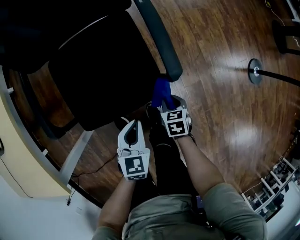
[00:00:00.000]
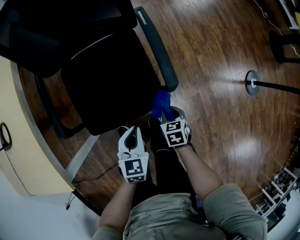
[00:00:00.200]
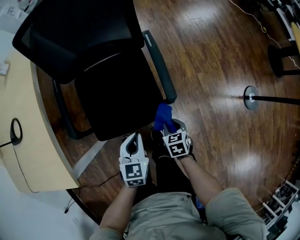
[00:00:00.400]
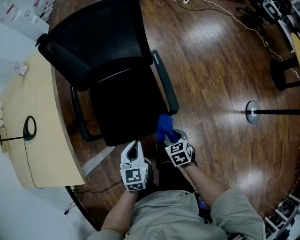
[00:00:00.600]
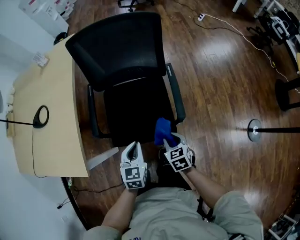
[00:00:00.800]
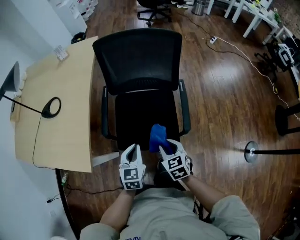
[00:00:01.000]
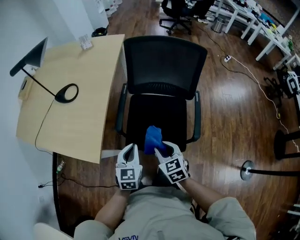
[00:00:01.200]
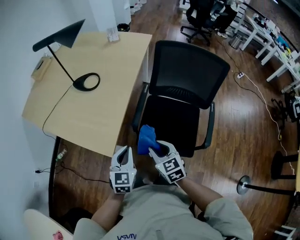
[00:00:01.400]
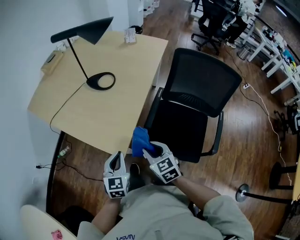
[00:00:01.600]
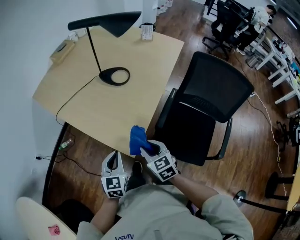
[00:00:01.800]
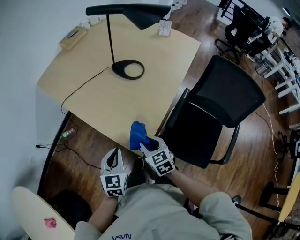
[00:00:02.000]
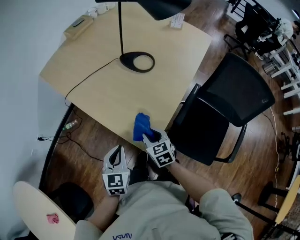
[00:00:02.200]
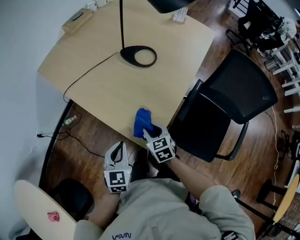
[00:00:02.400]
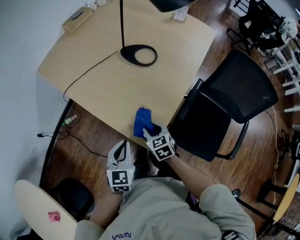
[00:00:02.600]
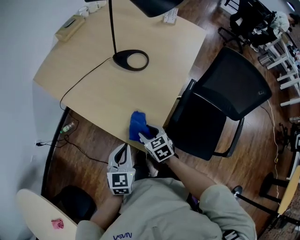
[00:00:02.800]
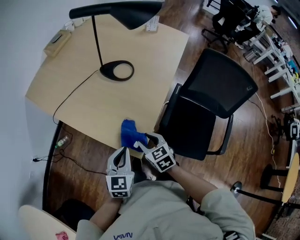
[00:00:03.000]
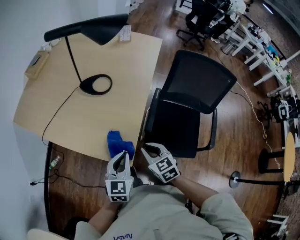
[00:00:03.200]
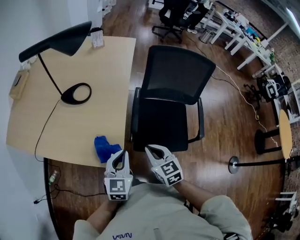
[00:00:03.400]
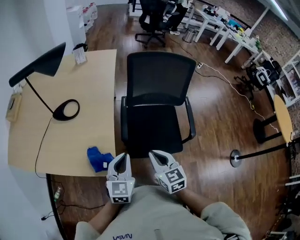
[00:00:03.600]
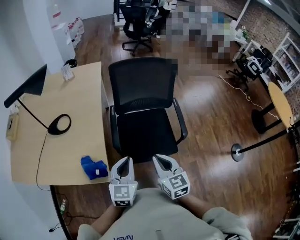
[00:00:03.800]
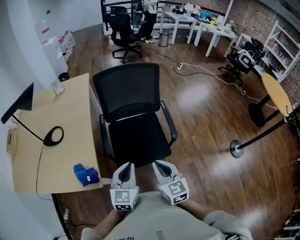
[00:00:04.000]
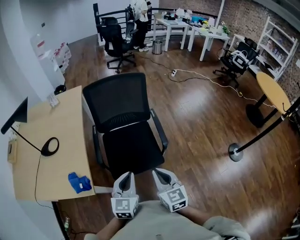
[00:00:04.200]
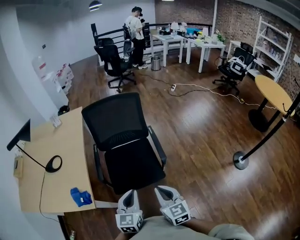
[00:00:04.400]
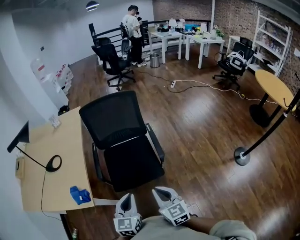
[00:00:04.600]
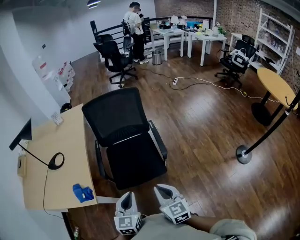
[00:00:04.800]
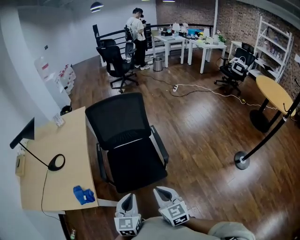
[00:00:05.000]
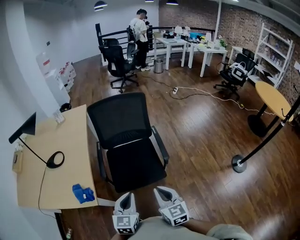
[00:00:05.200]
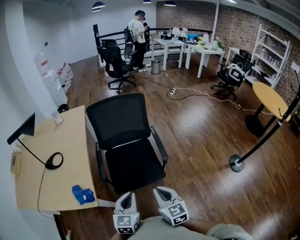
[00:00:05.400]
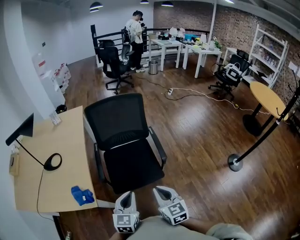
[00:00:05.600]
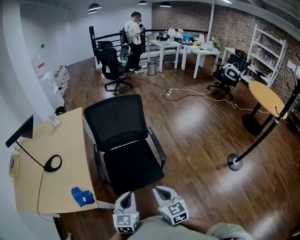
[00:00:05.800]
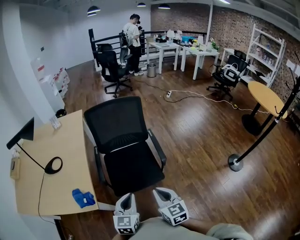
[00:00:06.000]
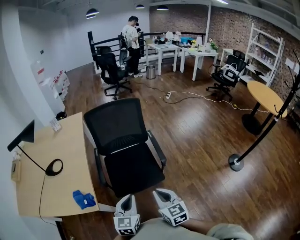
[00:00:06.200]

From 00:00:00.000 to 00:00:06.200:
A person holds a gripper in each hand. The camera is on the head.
From 00:00:00.000 to 00:00:01.600: The pair of grippers is taken approximately 50 cm. The right gripper tilts its fingers approximately 30 degrees upward; the left gripper turns by approximately 50 degrees.
From 00:00:01.600 to 00:00:03.200: The right gripper moves forward and to the left, about 10 cm. Meanwhile the left gripper heads forward, covering approximately 5 cm, and travels to the left and back again, about 15 cm each way.
From 00:00:03.200 to 00:00:04.600: The two grippers travel together, some 50 cm. The left gripper turns by about 30 degrees. Meanwhile the right gripper changes its angle by roughly 40 degrees.
From 00:00:04.600 to 00:00:06.200: Both grippers move to the left, about 5 cm.

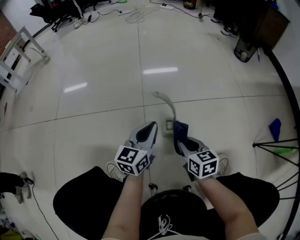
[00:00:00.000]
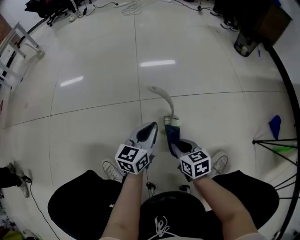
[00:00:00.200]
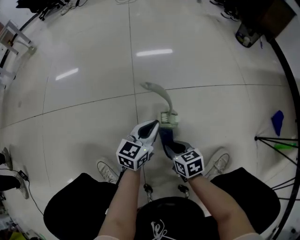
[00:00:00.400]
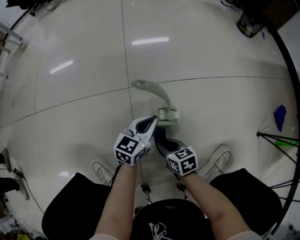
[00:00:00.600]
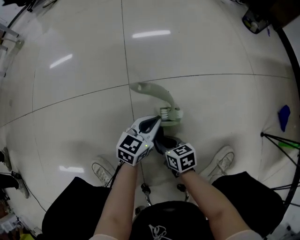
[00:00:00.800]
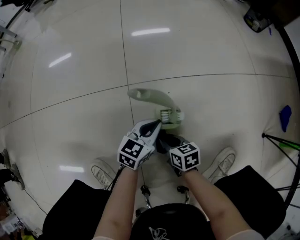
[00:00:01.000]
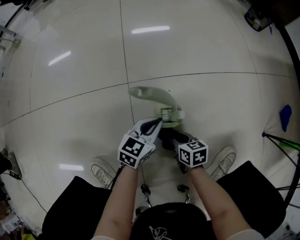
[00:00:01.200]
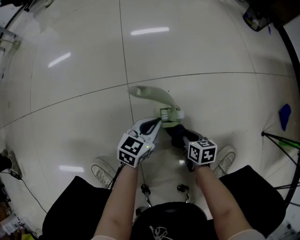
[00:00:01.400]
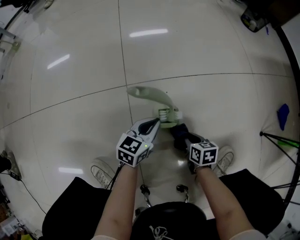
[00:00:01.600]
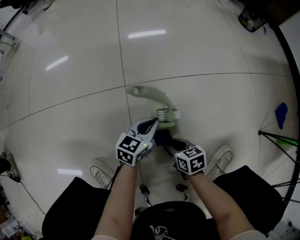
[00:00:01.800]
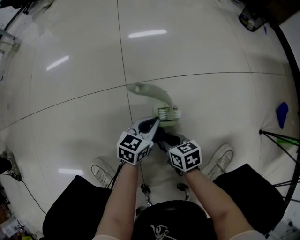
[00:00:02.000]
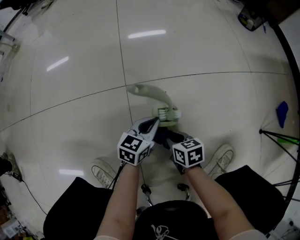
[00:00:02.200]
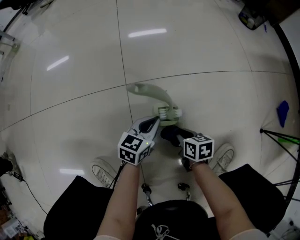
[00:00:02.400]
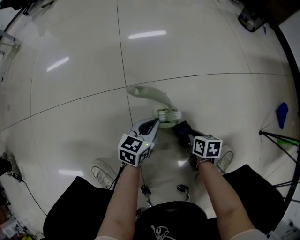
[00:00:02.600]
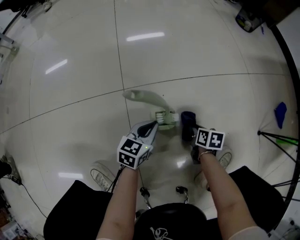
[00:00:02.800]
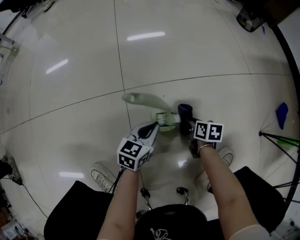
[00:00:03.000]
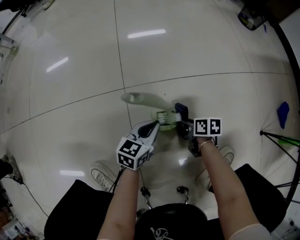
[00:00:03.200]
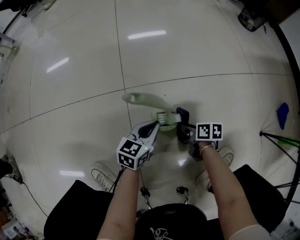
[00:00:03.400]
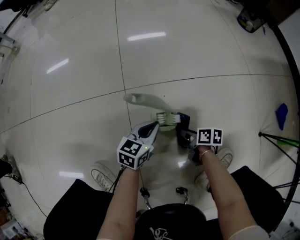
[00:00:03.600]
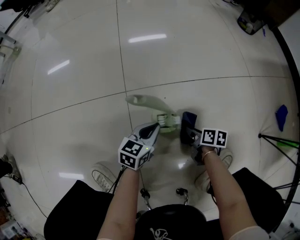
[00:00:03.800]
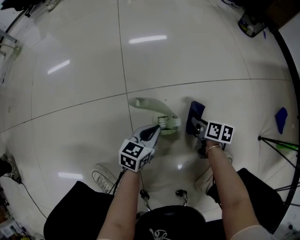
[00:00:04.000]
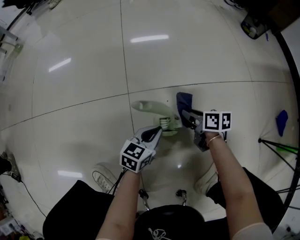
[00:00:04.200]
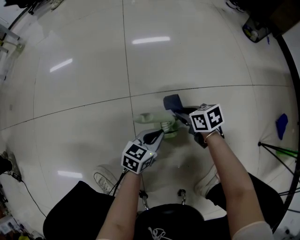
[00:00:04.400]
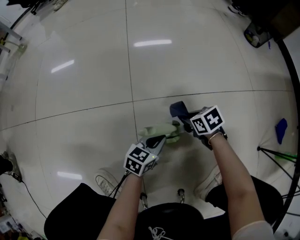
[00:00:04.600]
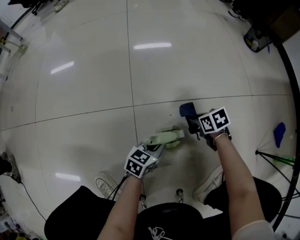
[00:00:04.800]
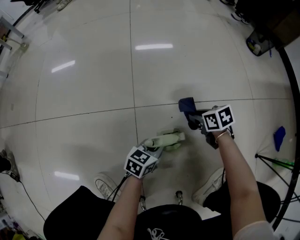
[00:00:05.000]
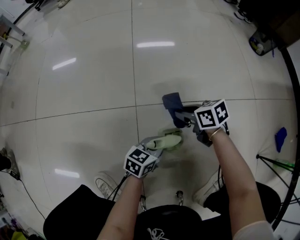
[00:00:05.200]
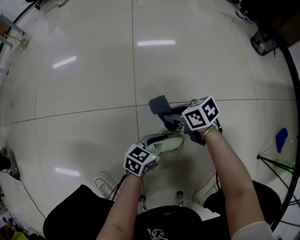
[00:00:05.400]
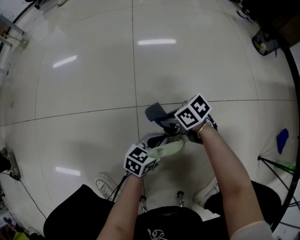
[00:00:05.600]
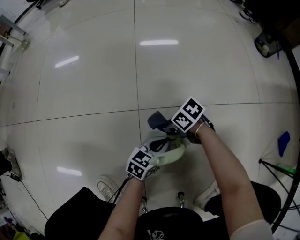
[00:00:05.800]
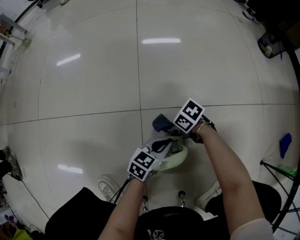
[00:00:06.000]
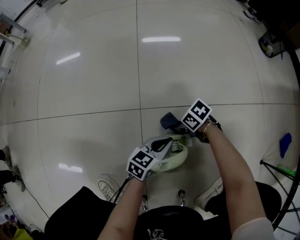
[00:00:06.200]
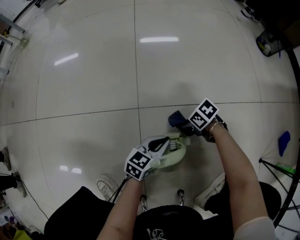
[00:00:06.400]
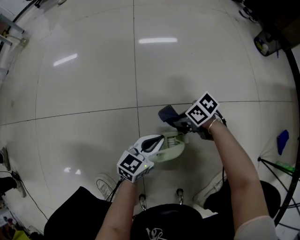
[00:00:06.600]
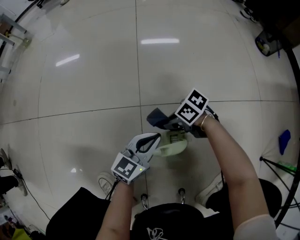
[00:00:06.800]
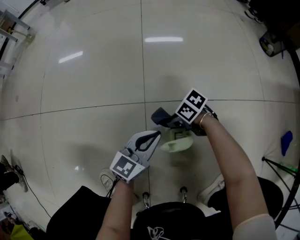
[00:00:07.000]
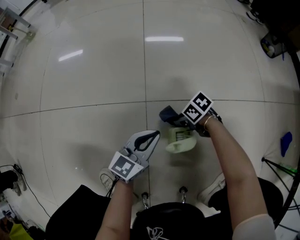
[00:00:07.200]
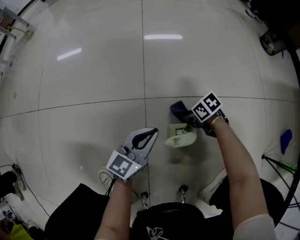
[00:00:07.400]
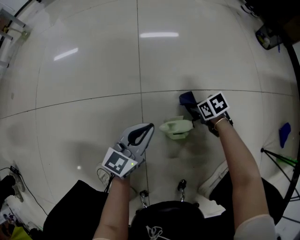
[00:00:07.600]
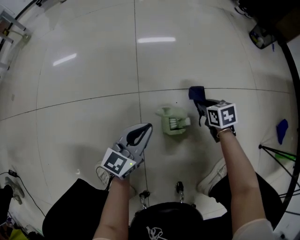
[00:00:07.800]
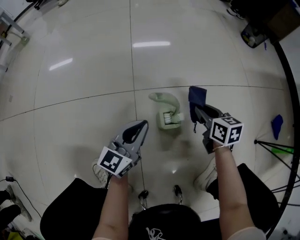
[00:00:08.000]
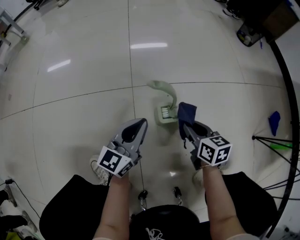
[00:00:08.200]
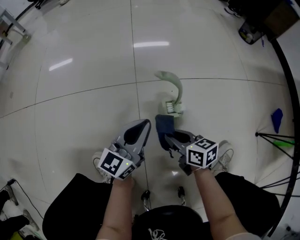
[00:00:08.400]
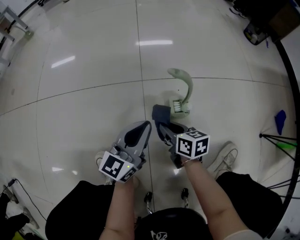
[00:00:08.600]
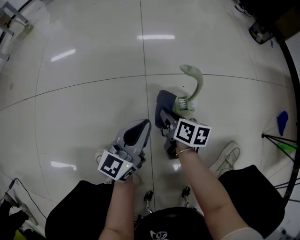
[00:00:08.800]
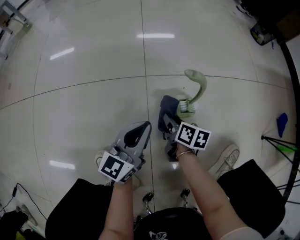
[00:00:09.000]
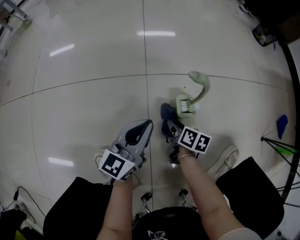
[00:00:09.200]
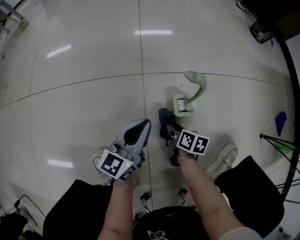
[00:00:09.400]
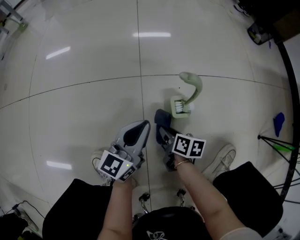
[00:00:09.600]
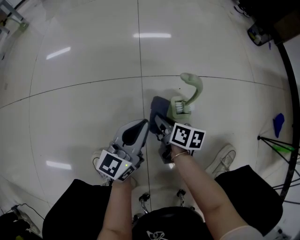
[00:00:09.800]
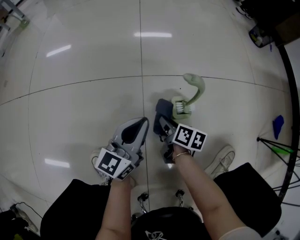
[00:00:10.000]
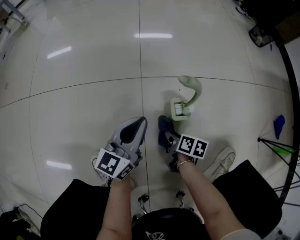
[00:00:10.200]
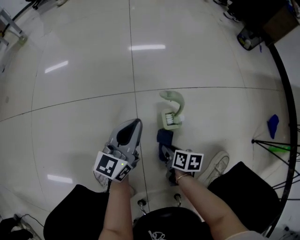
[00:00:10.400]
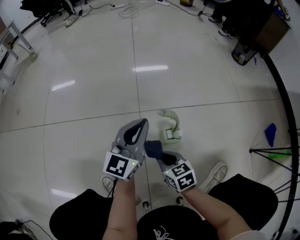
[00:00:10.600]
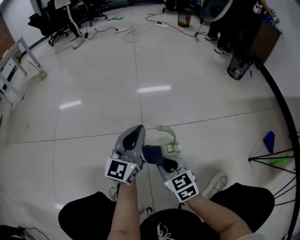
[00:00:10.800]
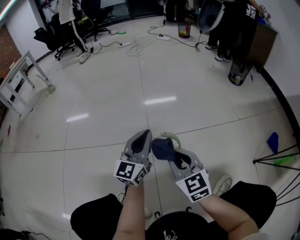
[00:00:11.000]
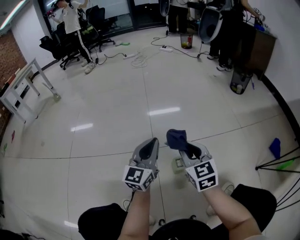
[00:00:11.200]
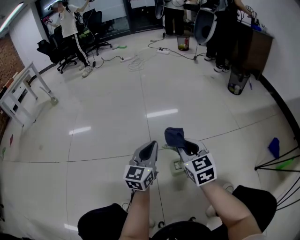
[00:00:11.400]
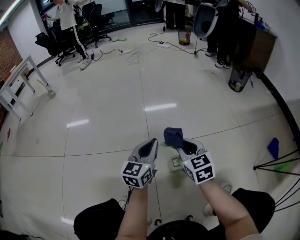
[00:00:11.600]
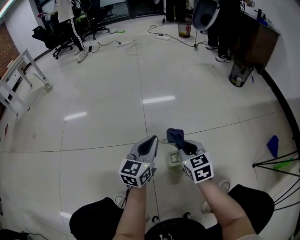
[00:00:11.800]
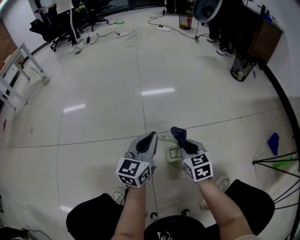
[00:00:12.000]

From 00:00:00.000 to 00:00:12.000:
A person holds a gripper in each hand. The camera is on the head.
From 00:00:00.000 to 00:00:01.600: The grippers both shift downward by about 20 cm. The left gripper rotates about 20 degrees. The right gripper turns by roughly 30 degrees.
From 00:00:01.600 to 00:00:03.000: The right gripper shifts some 10 cm forward, and goes to the left and returns, about 10 cm each way.
From 00:00:03.000 to 00:00:04.400: The right gripper travels to the left, upward and forward by roughly 15 cm, and turns by approximately 30 degrees.
From 00:00:04.400 to 00:00:06.000: The left gripper ends up some 5 cm from where it was; the right gripper ends up some 10 cm from where it was, and turns by approximately 40 degrees.
From 00:00:06.000 to 00:00:07.600: The left gripper goes some 10 cm upward, and turns by some 30 degrees. Meanwhile the right gripper shifts by approximately 10 cm, and changes its angle by about 30 degrees.
From 00:00:07.600 to 00:00:09.000: The left gripper moves backward and to the left, some 10 cm. The right gripper moves to the left and backward, roughly 20 cm, and turns by about 50 degrees.
From 00:00:09.000 to 00:00:10.400: The left gripper changes place by some 5 cm; the right gripper swings forward and backward, roughly 10 cm each way, with 2 reversals.
From 00:00:10.400 to 00:00:12.000: The right gripper travels upward and forward by roughly 25 cm, and twists roughly 50 degrees counterclockwise, seen from behind; the left gripper moves upward and forward, roughly 15 cm.

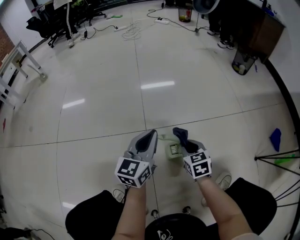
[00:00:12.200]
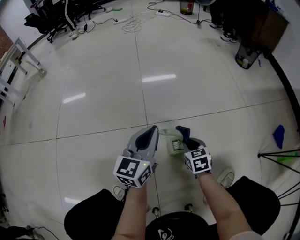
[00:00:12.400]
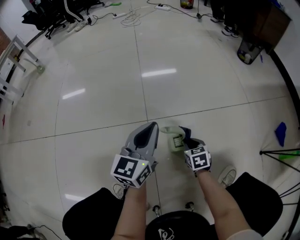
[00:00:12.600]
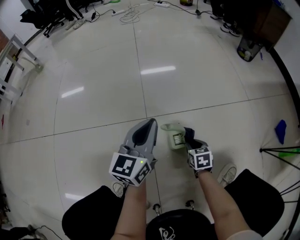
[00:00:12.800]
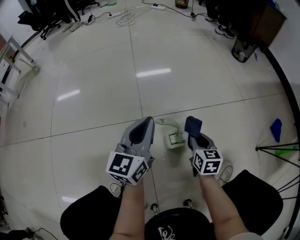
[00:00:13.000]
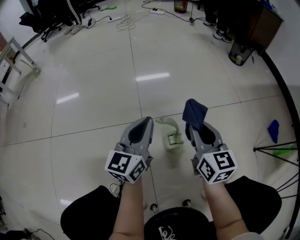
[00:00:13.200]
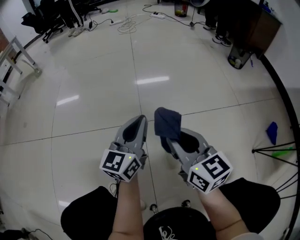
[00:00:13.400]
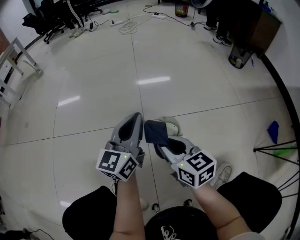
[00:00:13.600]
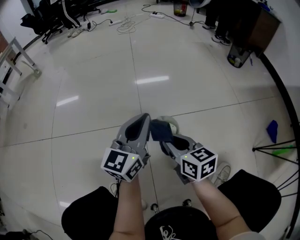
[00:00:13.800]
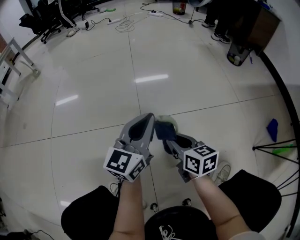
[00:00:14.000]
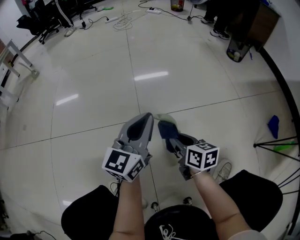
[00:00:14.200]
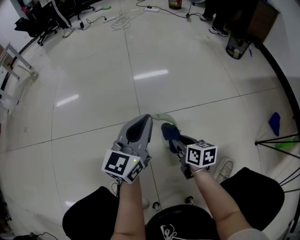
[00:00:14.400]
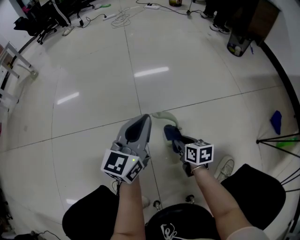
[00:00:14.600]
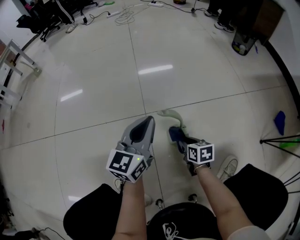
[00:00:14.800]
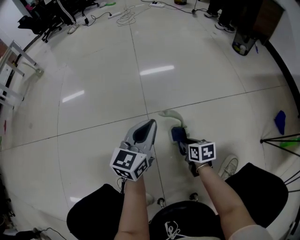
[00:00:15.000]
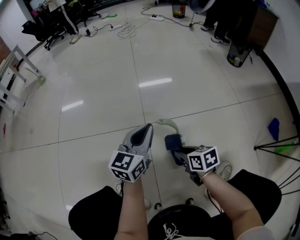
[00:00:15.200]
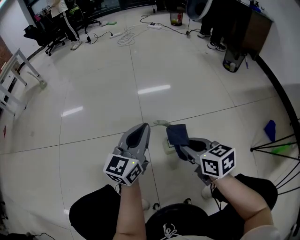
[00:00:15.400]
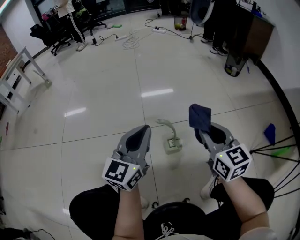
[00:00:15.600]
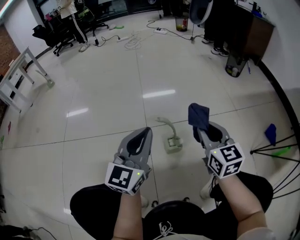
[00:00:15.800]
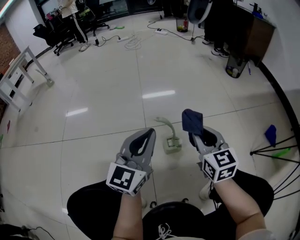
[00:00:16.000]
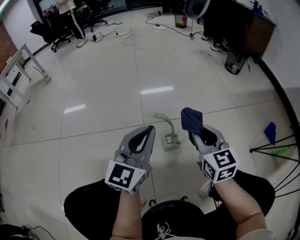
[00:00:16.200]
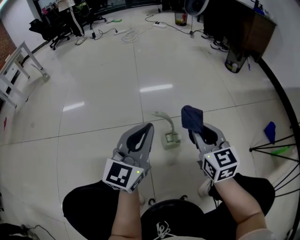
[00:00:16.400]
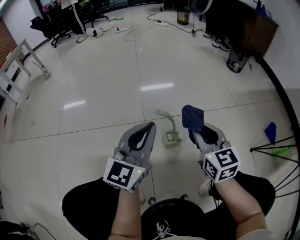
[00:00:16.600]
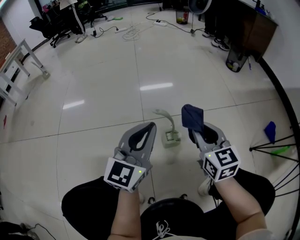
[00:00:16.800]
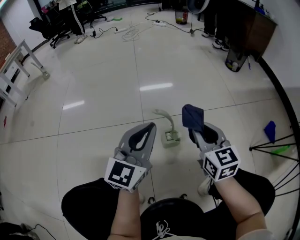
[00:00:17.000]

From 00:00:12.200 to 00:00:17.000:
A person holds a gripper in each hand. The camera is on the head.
From 00:00:12.200 to 00:00:13.800: The left gripper shifts by roughly 5 cm. The right gripper goes up and down, about 30 cm each way, reversing 2 times, and swivels roughly 30 degrees.
From 00:00:13.800 to 00:00:15.400: The left gripper reaches some 5 cm downward, then returns; the right gripper travels to the right by approximately 5 cm, and reaches roughly 20 cm downward, then returns.
From 00:00:15.400 to 00:00:17.000: The right gripper travels to the right by about 5 cm, and rotates approximately 30 degrees; the left gripper goes roughly 5 cm backward.
